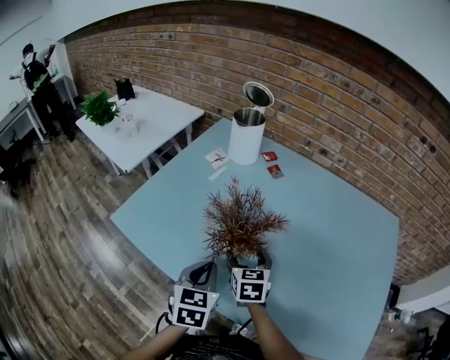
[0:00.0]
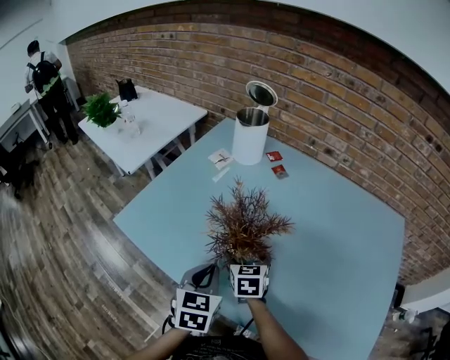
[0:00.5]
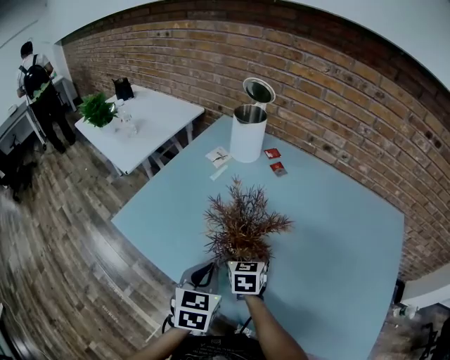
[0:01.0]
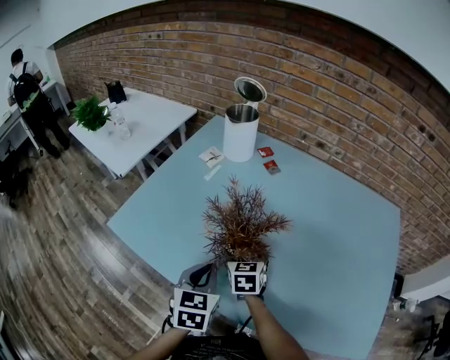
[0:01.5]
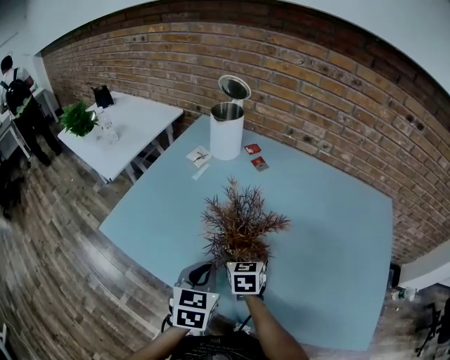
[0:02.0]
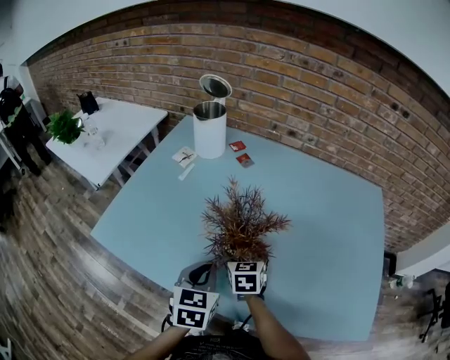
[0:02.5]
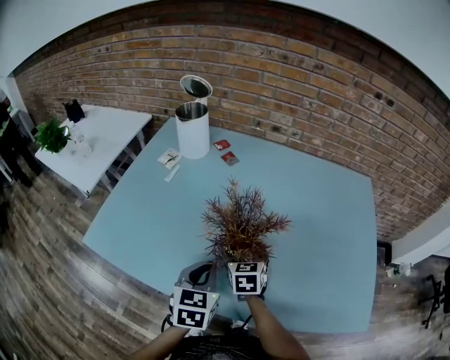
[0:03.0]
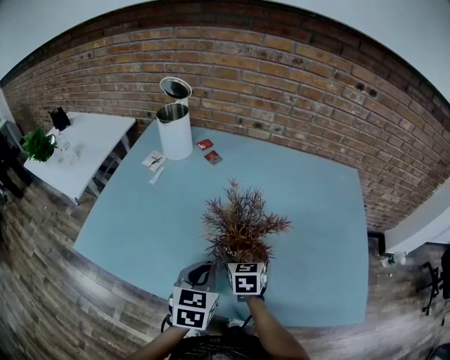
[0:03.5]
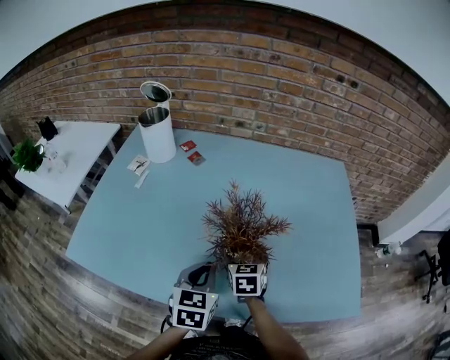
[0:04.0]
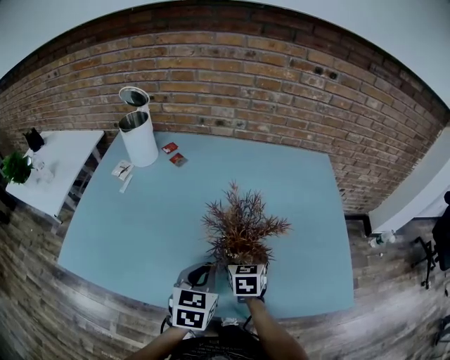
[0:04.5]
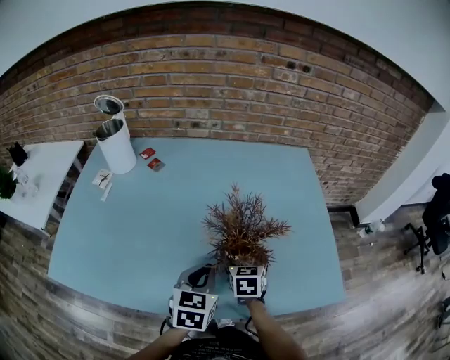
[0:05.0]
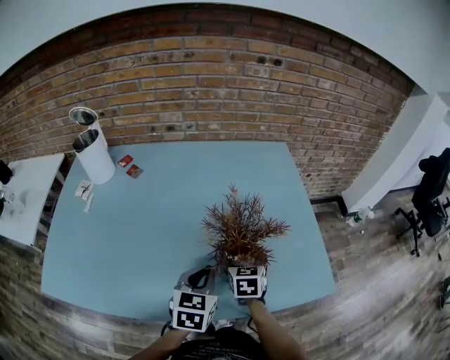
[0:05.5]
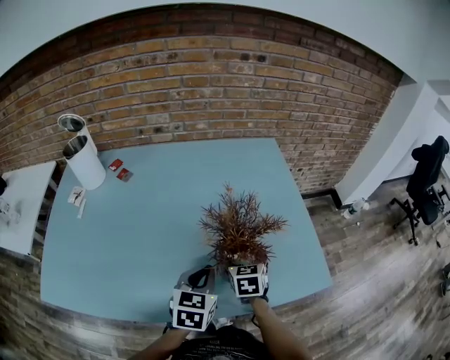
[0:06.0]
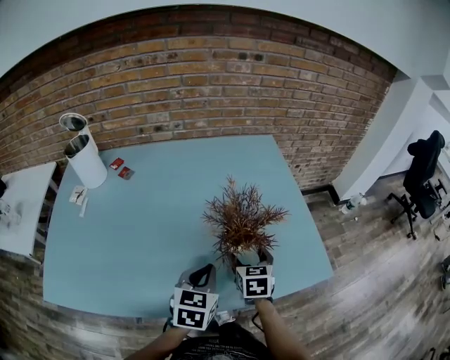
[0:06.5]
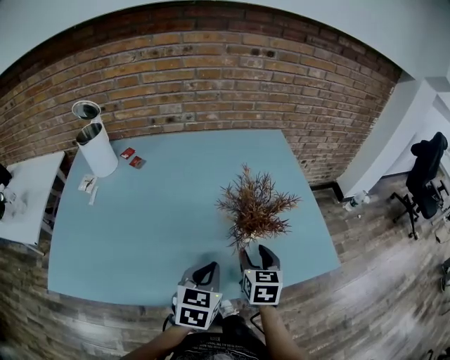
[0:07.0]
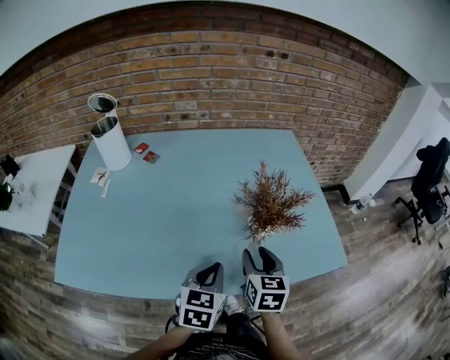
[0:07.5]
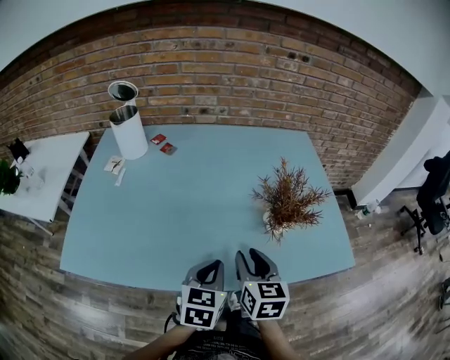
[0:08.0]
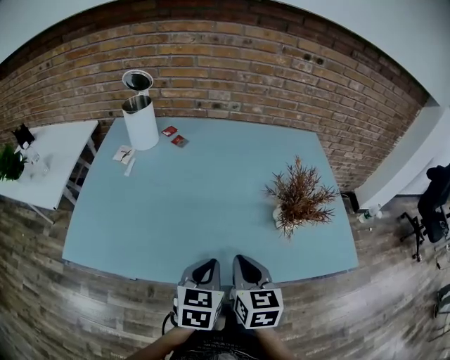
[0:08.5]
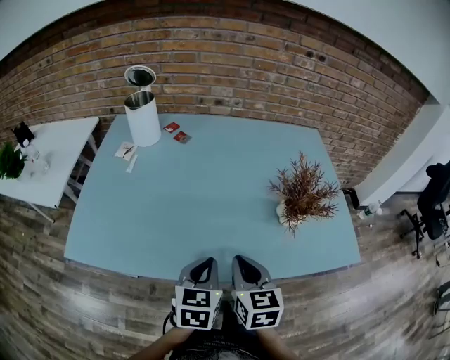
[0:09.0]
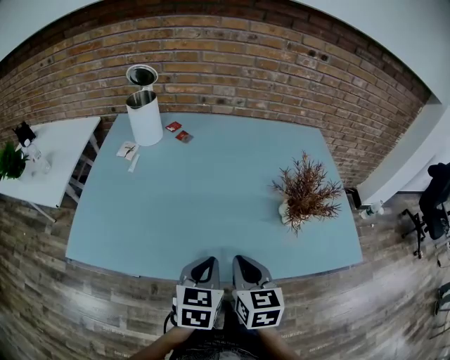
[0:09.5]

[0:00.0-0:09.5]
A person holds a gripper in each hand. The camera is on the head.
0:00.0 to 0:02.0: There are only small adjustments of the grippers.
0:02.0 to 0:04.0: The grippers both shift to the right by approximately 15 cm.
0:04.0 to 0:05.5: The grippers both shift to the right by roughly 15 cm.
0:05.5 to 0:07.5: The left gripper goes some 10 cm backward. The right gripper goes about 15 cm backward and upward, and closes its fingers.
0:07.5 to 0:09.5: The right gripper is displaced to the left and backward by approximately 15 cm, and closes. Meanwhile the left gripper travels to the left by approximately 10 cm.

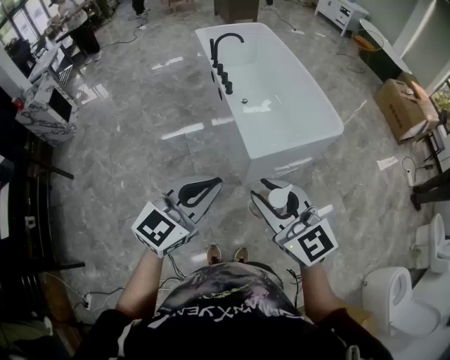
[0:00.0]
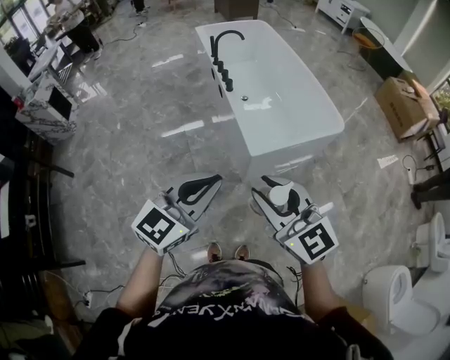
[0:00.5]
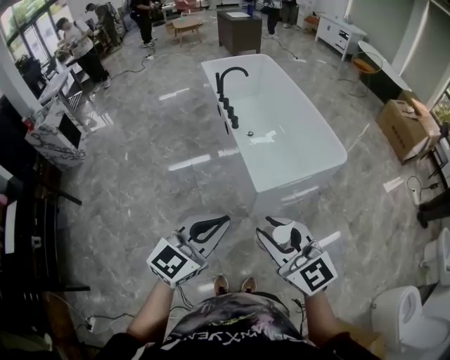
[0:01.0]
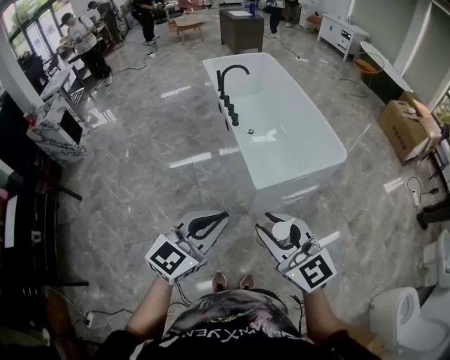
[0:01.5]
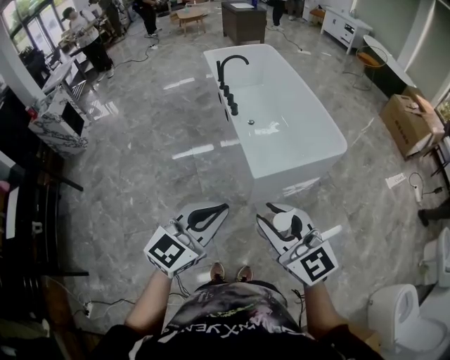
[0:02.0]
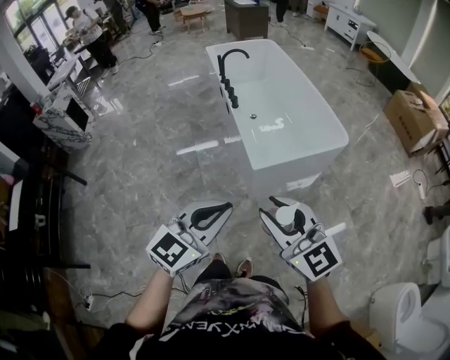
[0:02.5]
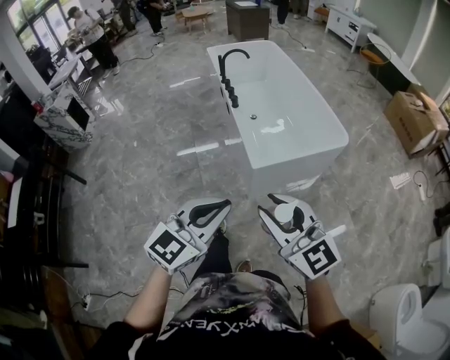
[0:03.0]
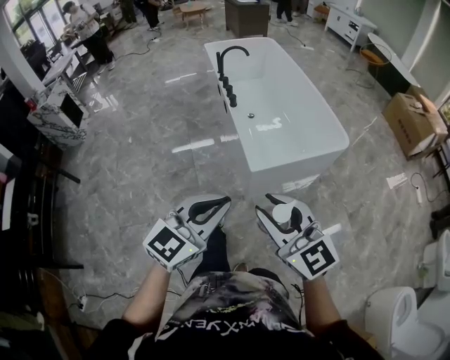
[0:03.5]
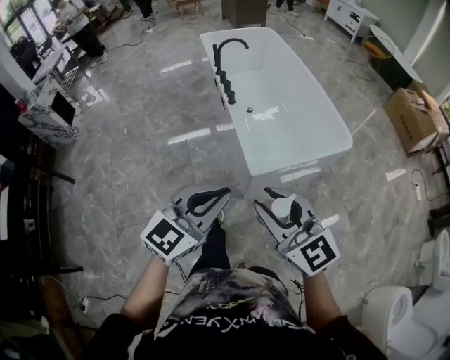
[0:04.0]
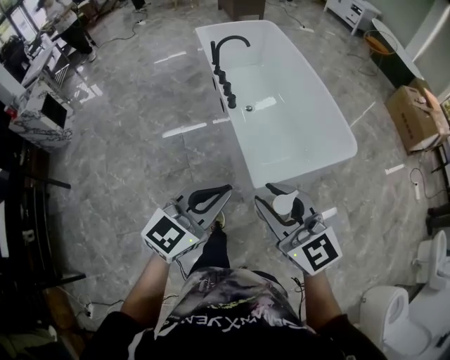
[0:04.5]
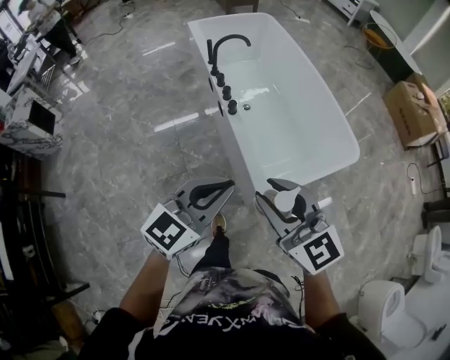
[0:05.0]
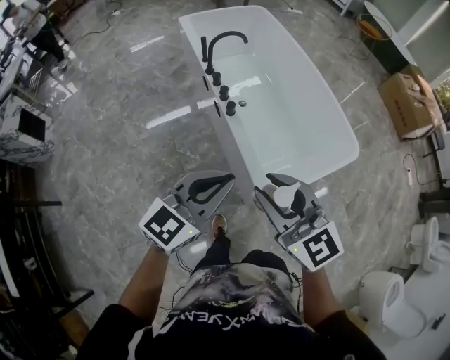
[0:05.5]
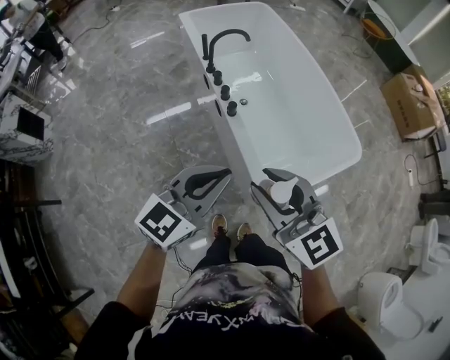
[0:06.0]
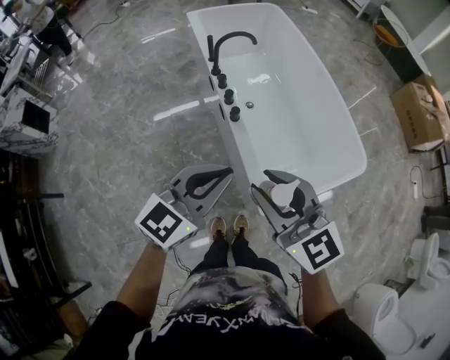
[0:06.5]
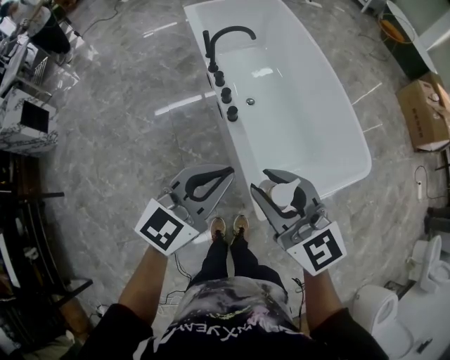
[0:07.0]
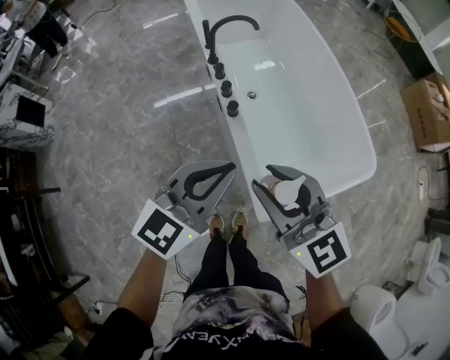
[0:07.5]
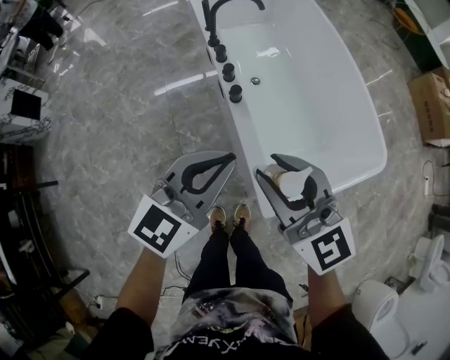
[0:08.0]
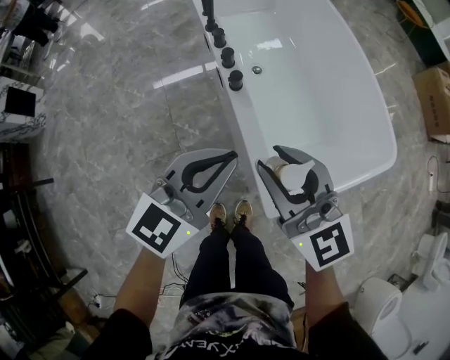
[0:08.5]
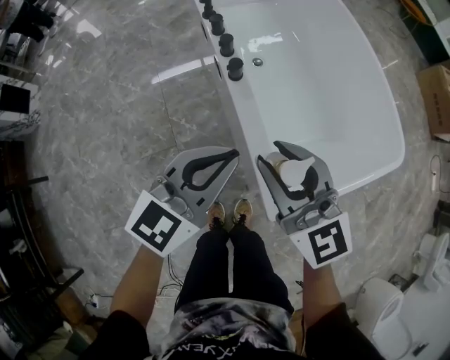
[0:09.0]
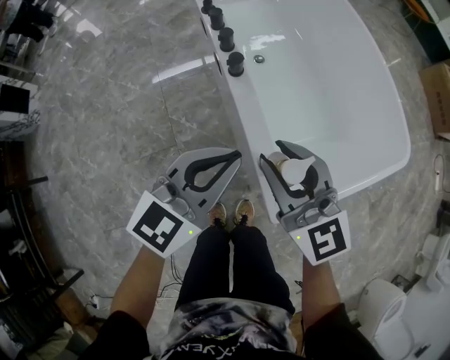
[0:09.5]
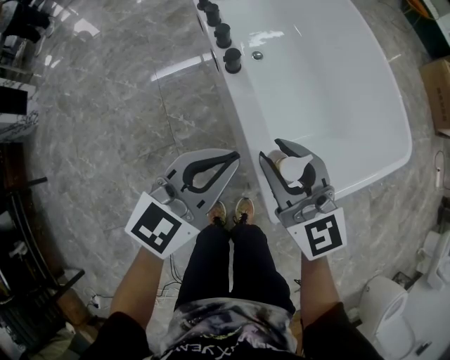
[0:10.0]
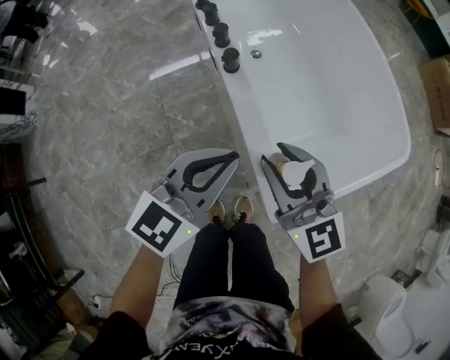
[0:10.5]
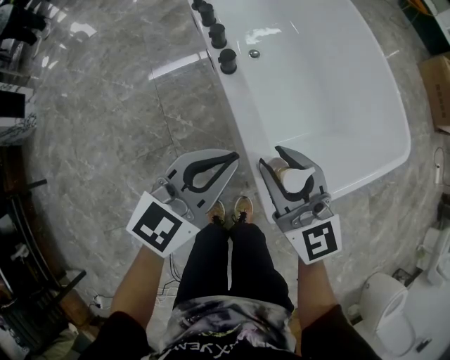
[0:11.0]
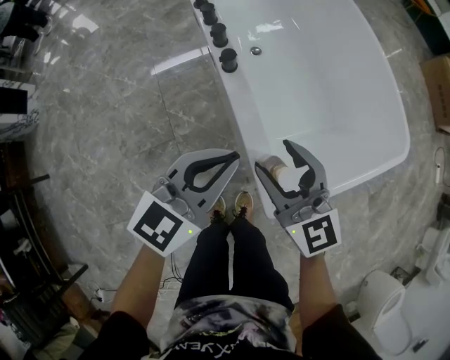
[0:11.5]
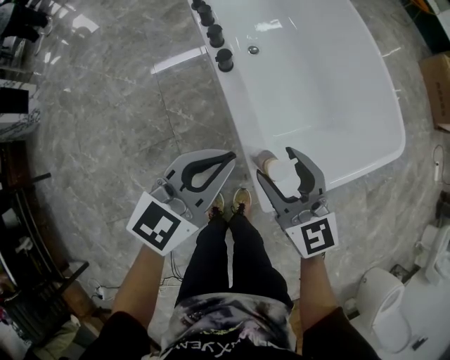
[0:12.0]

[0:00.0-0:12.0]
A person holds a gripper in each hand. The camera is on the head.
0:00.0 to 0:02.0: The grippers stay close to where they were, moving slightly.
0:02.0 to 0:04.0: The two grippers go approximately 10 cm forward.
0:04.0 to 0:06.0: The right gripper goes some 35 cm forward and to the left. Meanwhile the left gripper goes about 35 cm forward.
0:06.0 to 0:08.0: Both grippers travel together forward and downward, roughly 15 cm.
0:08.0 to 0:10.0: The grippers both shift downward by approximately 20 cm.
0:10.0 to 0:12.0: The right gripper opens up.

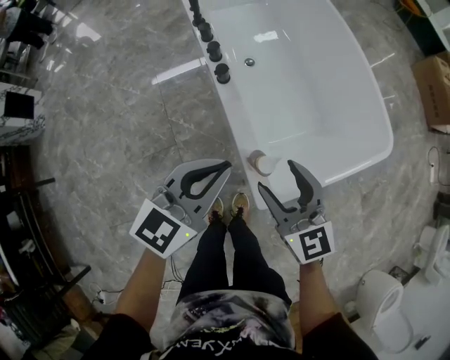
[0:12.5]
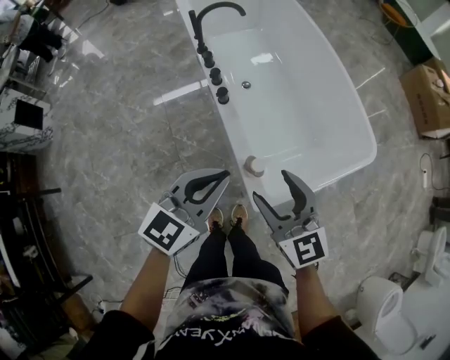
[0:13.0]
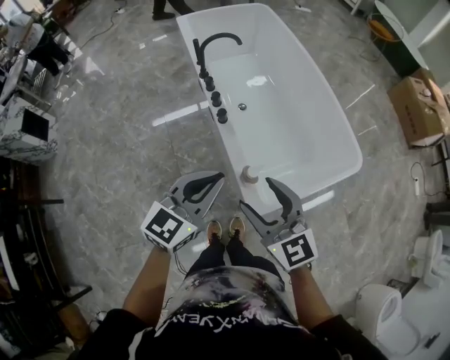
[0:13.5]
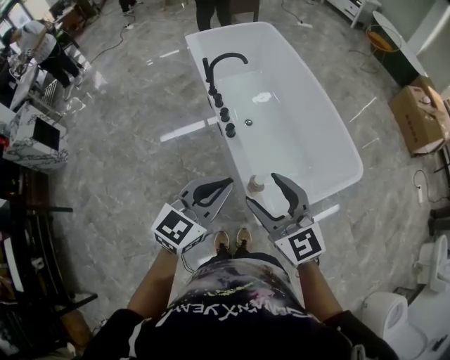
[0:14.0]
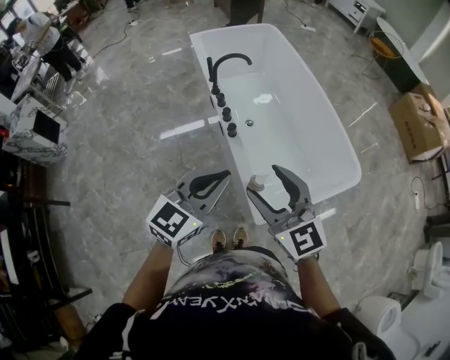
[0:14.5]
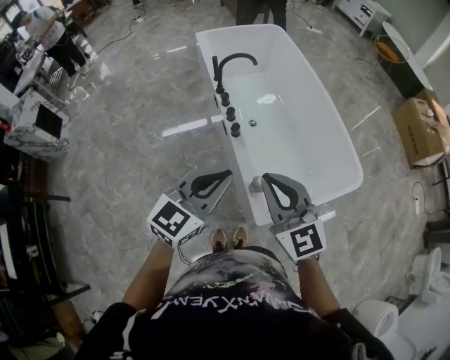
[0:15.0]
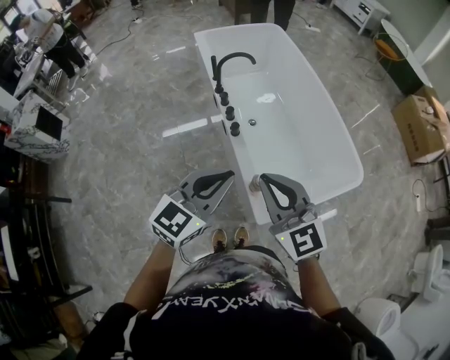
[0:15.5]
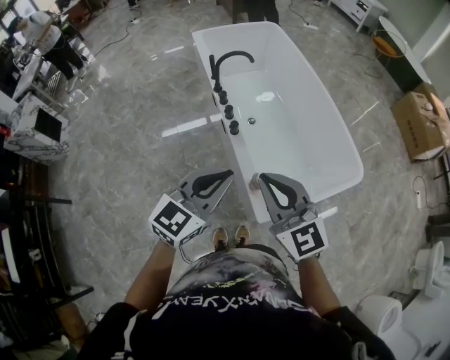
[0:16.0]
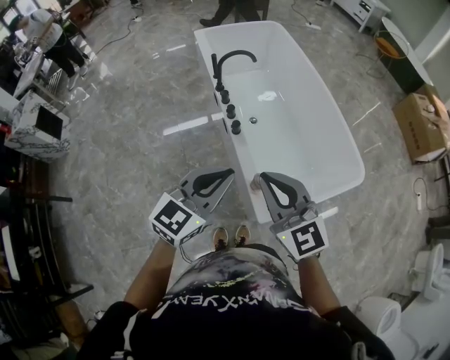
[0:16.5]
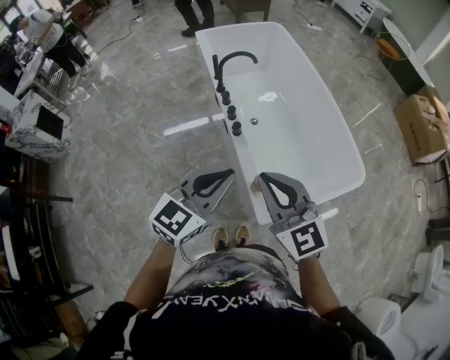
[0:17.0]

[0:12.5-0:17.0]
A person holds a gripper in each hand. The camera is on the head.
0:12.5 to 0:14.5: The two grippers go roughly 25 cm upward.
0:14.5 to 0:17.0: The right gripper closes its fingers.

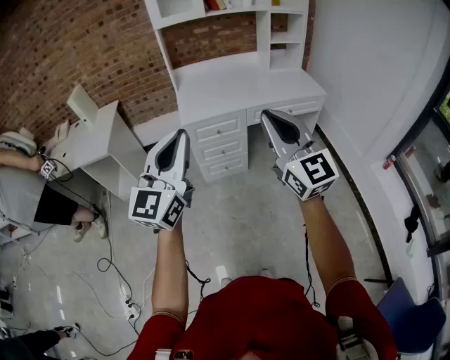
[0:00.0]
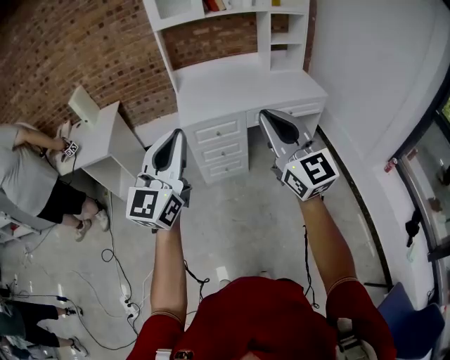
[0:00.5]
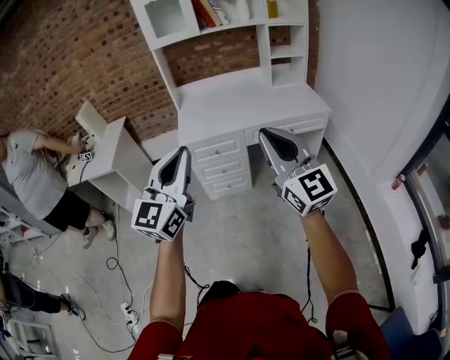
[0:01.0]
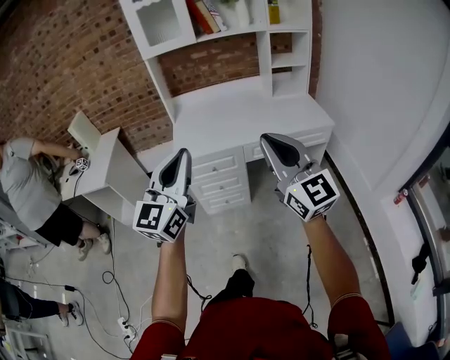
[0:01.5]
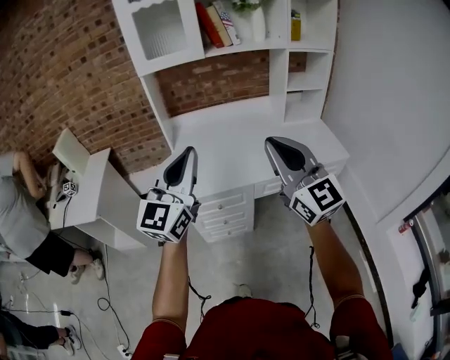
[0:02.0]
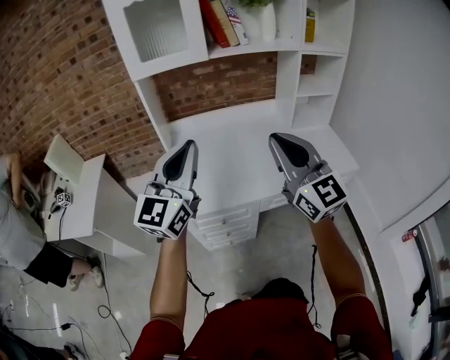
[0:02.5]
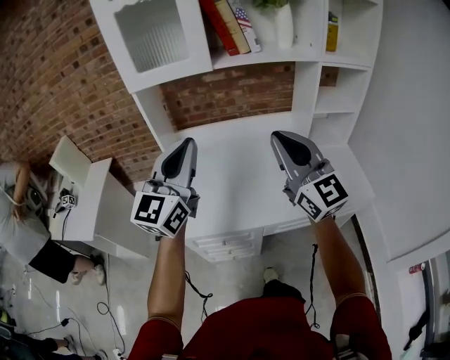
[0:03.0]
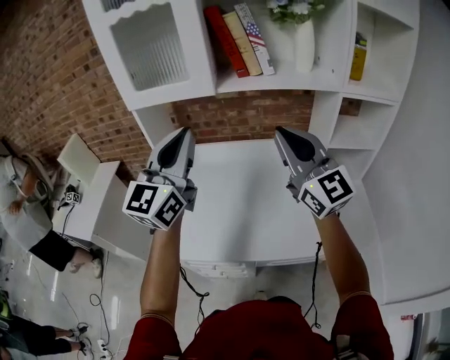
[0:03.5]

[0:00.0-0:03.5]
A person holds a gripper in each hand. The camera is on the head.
0:00.0 to 0:02.0: The two grippers go about 35 cm forward.
0:02.0 to 0:03.5: Both grippers travel together forward, roughly 35 cm.
